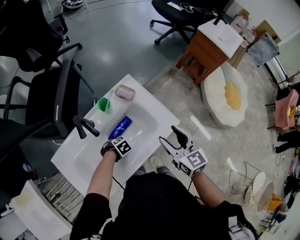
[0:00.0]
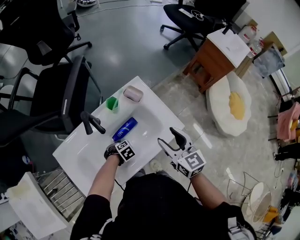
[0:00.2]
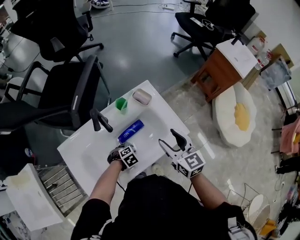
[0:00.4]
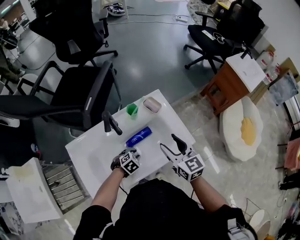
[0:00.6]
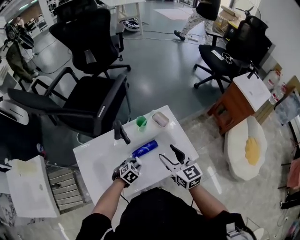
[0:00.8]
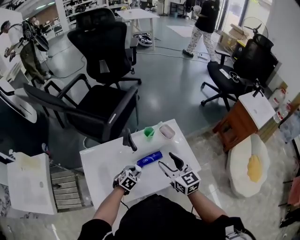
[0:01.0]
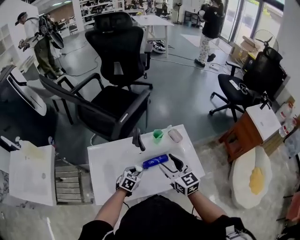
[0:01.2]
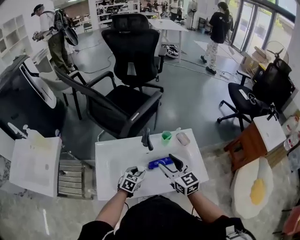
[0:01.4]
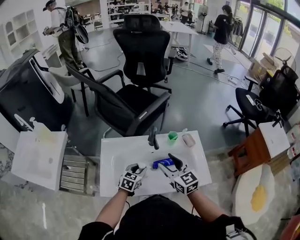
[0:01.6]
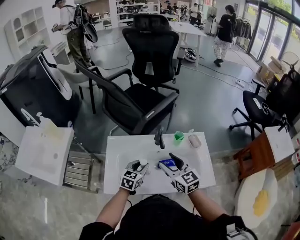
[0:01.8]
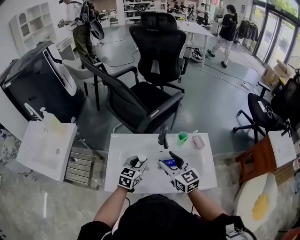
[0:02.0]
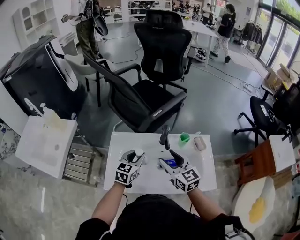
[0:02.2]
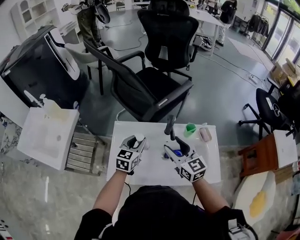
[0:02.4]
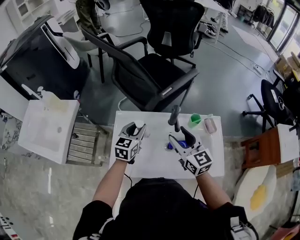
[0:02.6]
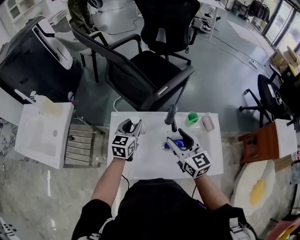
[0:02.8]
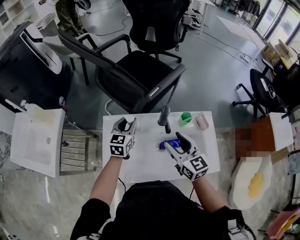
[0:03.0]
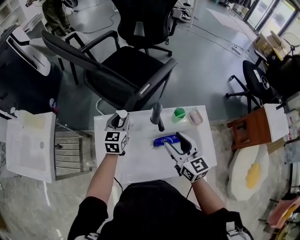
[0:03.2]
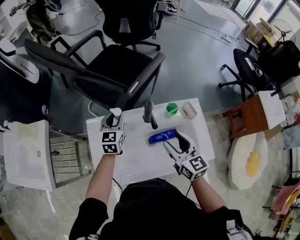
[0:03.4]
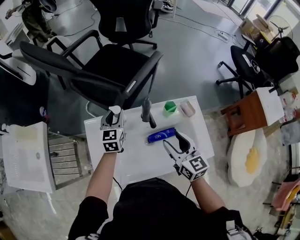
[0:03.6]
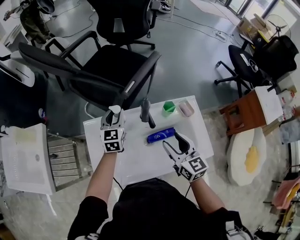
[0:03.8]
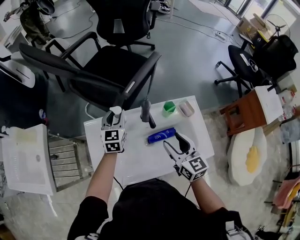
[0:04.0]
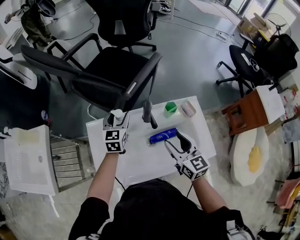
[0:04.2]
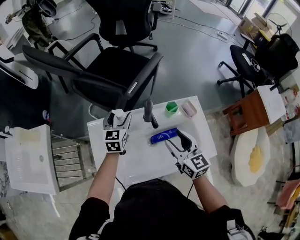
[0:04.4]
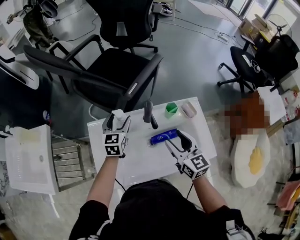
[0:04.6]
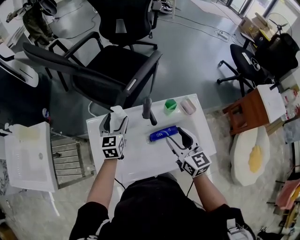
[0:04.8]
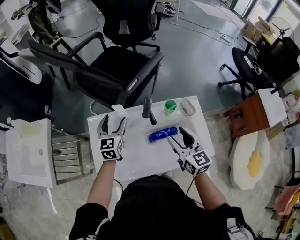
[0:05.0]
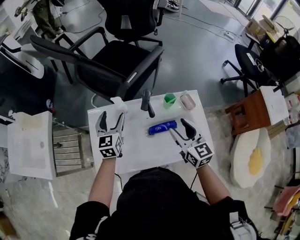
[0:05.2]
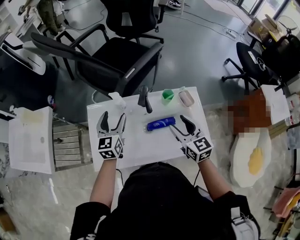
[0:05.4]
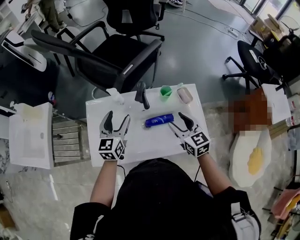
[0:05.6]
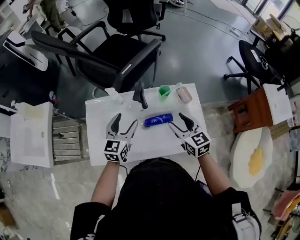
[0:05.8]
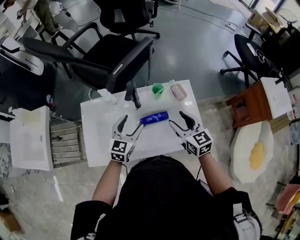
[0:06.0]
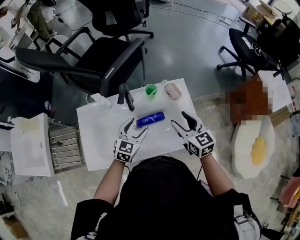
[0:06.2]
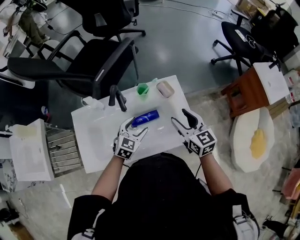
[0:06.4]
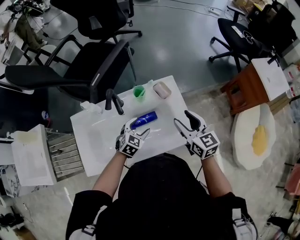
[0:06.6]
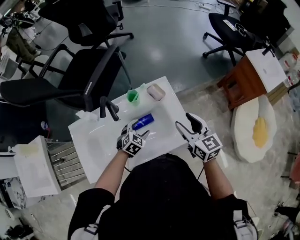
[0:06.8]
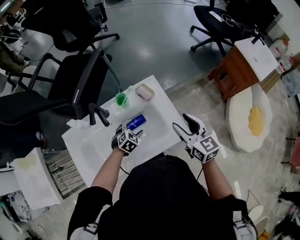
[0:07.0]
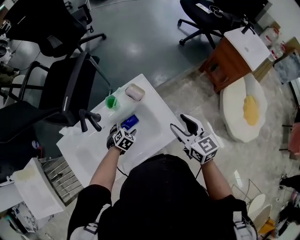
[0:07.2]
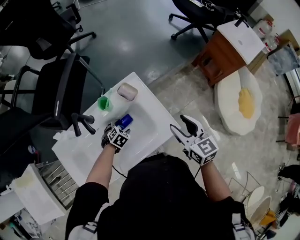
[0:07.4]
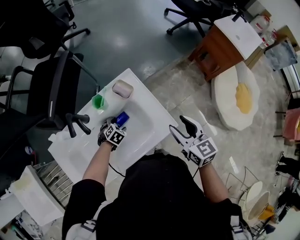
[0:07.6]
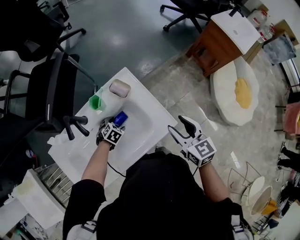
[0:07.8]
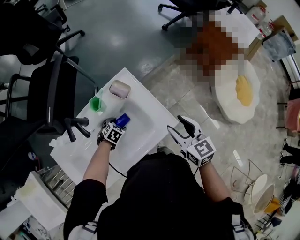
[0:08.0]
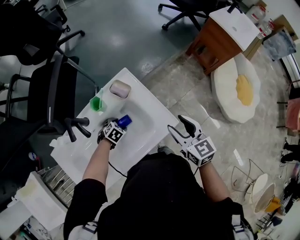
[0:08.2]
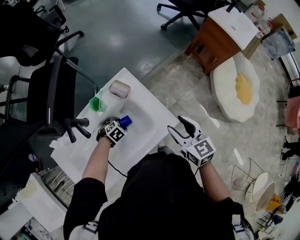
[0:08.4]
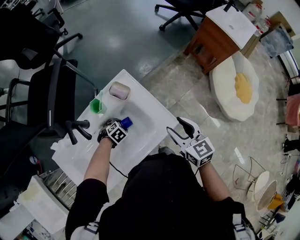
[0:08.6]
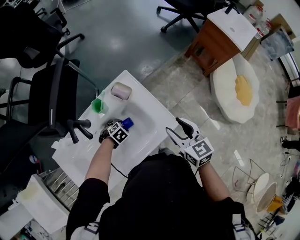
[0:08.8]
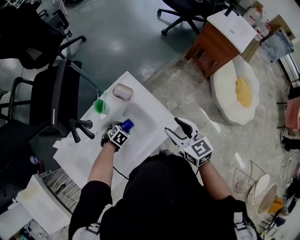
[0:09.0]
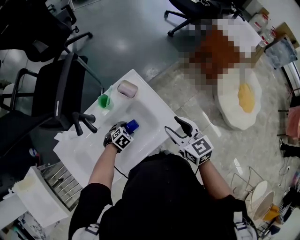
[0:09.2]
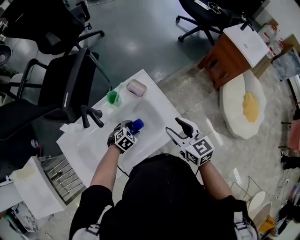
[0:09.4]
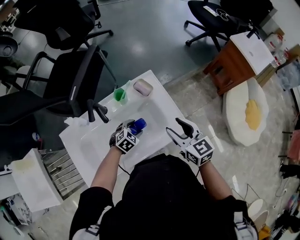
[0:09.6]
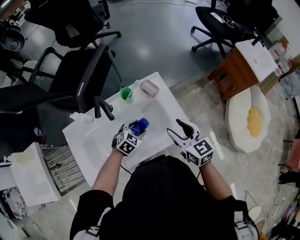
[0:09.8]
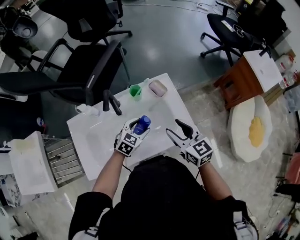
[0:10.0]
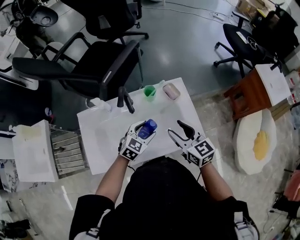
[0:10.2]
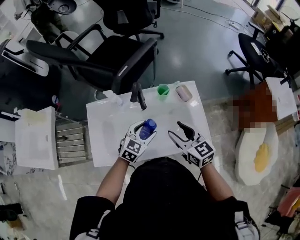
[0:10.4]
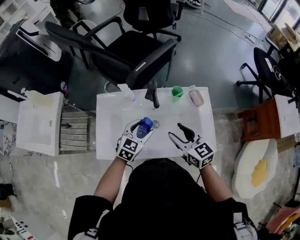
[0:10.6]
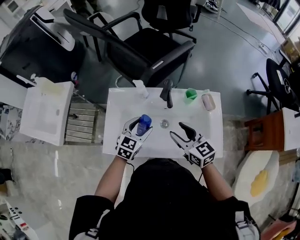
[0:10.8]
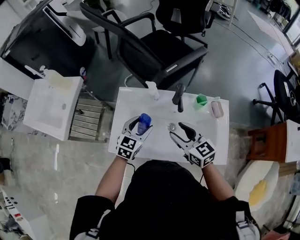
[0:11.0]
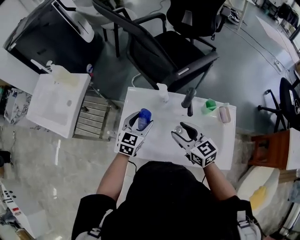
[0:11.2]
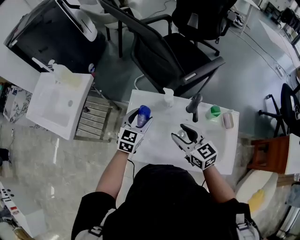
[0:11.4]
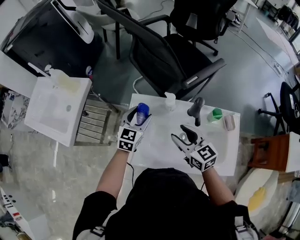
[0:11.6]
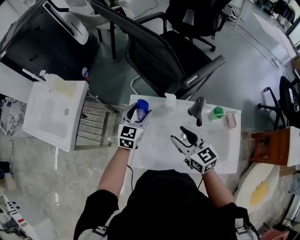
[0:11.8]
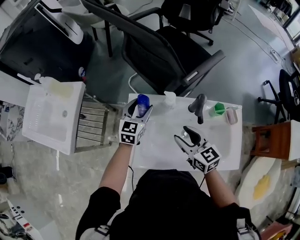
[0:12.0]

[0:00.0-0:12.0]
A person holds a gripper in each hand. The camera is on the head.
0:00.0 to 0:01.6: The right gripper ends up some 25 cm from where it was, and swivels about 40 degrees, while the left gripper moves upward, roughly 20 cm, and tips its fingers upward by approximately 40 degrees.
0:01.6 to 0:03.0: The left gripper travels forward, to the left and upward by roughly 20 cm, and changes its angle by approximately 20 degrees.
0:03.0 to 0:04.4: The left gripper moves approximately 5 cm, and opens up. Meanwhile the right gripper travels to the right by some 5 cm.
0:04.4 to 0:06.0: The right gripper goes about 10 cm to the right. The left gripper goes about 20 cm backward and to the right.
0:06.0 to 0:07.6: The left gripper travels downward by roughly 25 cm, and points its fingers some 50 degrees further downward. Meanwhile the right gripper ends up approximately 20 cm from where it was, and swivels some 30 degrees.
0:07.6 to 0:09.0: The grippers move only a little.
0:09.0 to 0:10.4: The left gripper heads upward, covering roughly 20 cm, and tips its fingers upward by some 40 degrees, while the right gripper shifts by about 20 cm, and rotates approximately 30 degrees.
0:10.4 to 0:12.0: The right gripper moves approximately 20 cm, while the left gripper changes place by approximately 30 cm, and changes its angle by roughly 40 degrees.

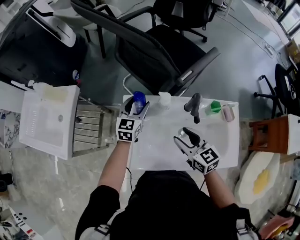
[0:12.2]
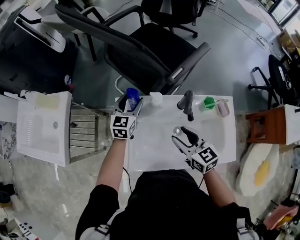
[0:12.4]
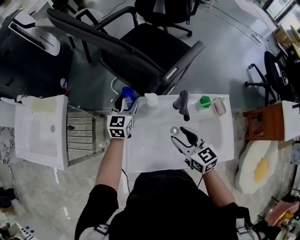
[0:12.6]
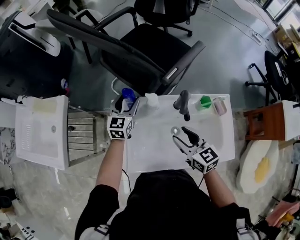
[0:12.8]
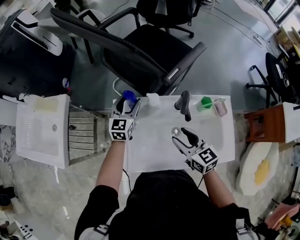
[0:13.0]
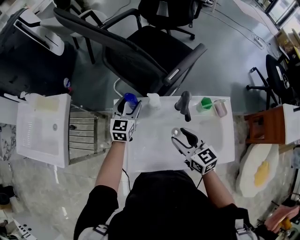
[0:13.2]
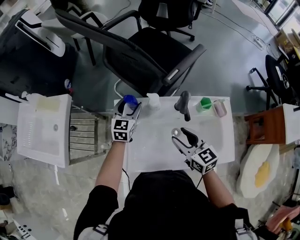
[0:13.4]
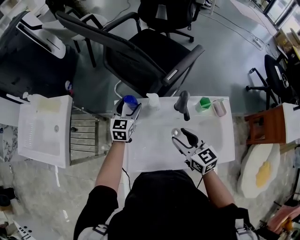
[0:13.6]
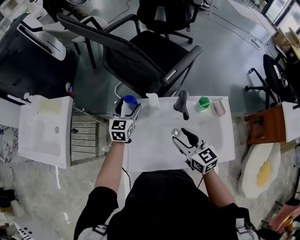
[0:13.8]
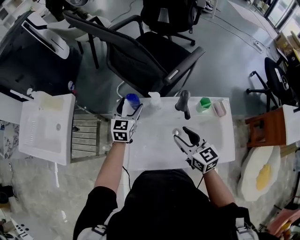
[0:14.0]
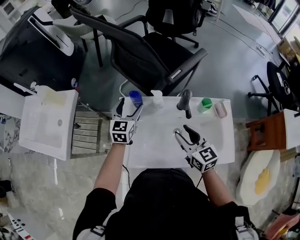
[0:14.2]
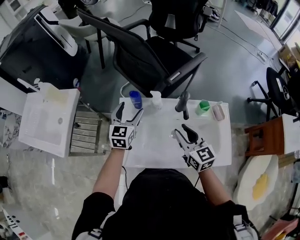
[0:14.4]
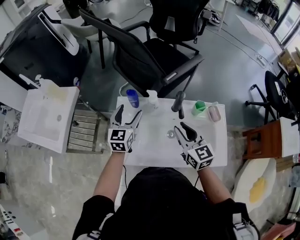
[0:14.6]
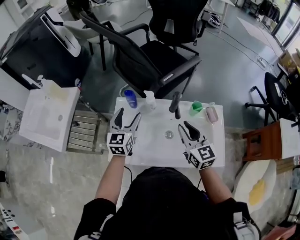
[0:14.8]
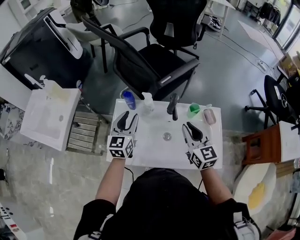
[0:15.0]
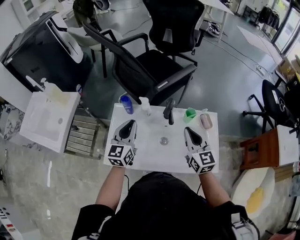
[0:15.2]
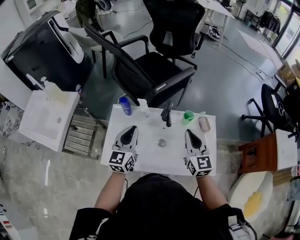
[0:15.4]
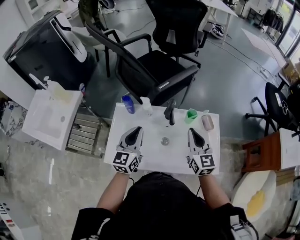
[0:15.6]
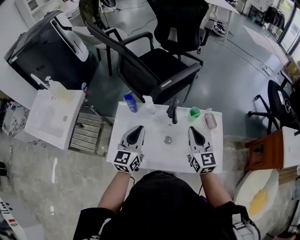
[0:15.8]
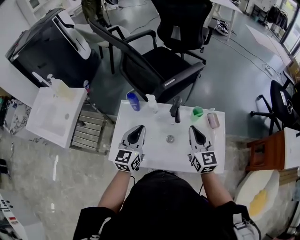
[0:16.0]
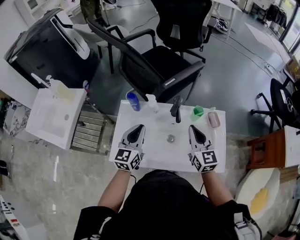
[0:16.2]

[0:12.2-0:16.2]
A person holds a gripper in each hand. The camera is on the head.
0:12.2 to 0:13.6: The grippers stay close to where they were, moving slightly.
0:13.6 to 0:14.8: The right gripper moves upward and to the right, approximately 10 cm; the left gripper heads backward and upward, covering roughly 15 cm.
0:14.8 to 0:16.2: The left gripper heads backward, covering roughly 5 cm, and closes its fingers.

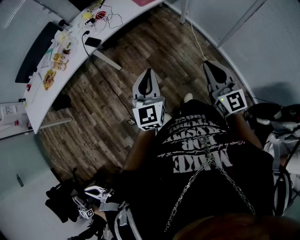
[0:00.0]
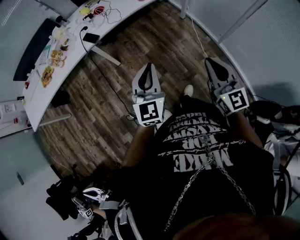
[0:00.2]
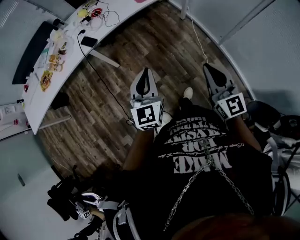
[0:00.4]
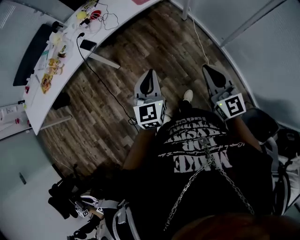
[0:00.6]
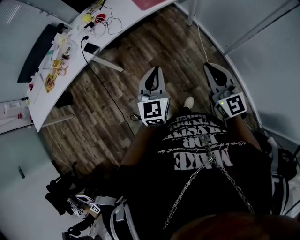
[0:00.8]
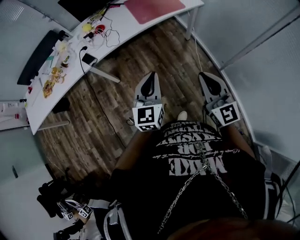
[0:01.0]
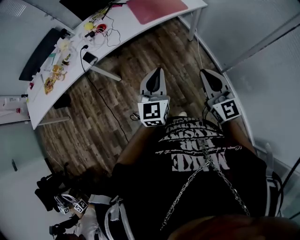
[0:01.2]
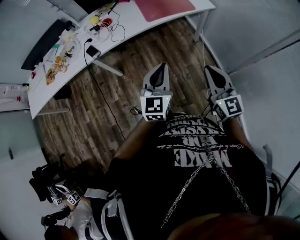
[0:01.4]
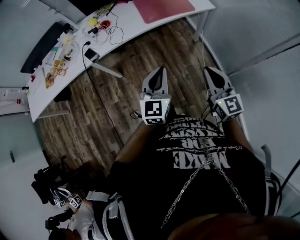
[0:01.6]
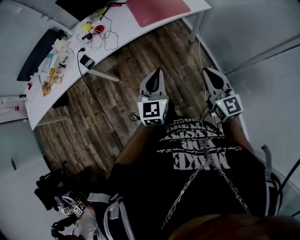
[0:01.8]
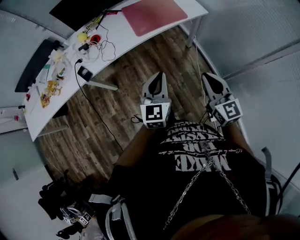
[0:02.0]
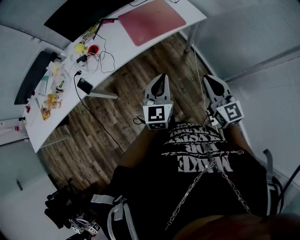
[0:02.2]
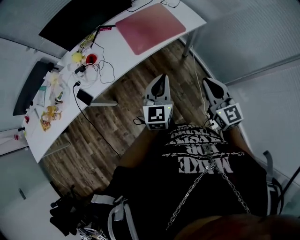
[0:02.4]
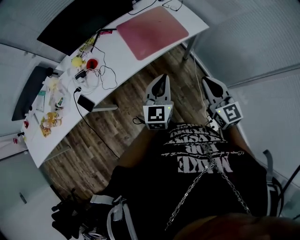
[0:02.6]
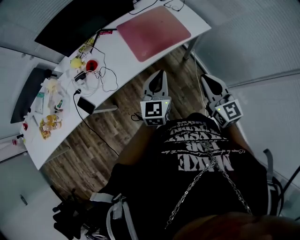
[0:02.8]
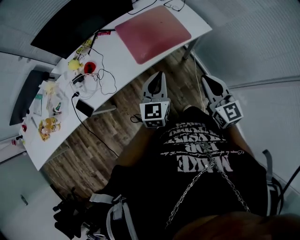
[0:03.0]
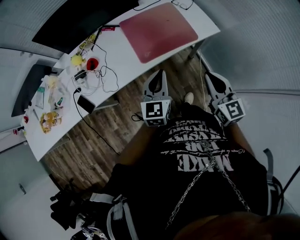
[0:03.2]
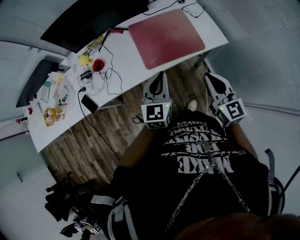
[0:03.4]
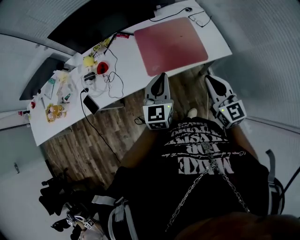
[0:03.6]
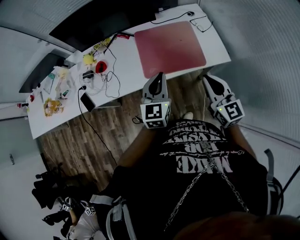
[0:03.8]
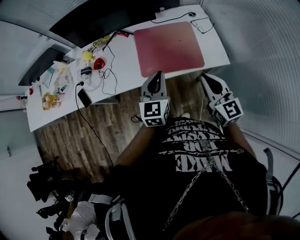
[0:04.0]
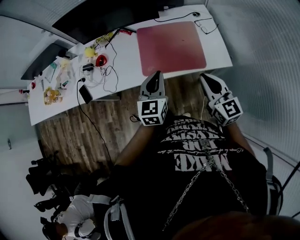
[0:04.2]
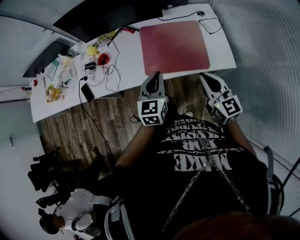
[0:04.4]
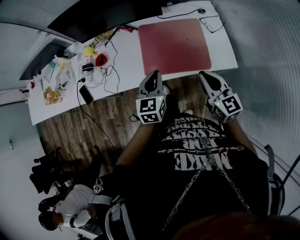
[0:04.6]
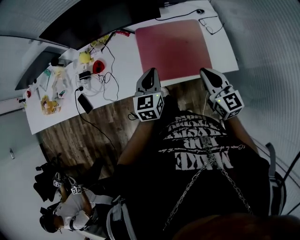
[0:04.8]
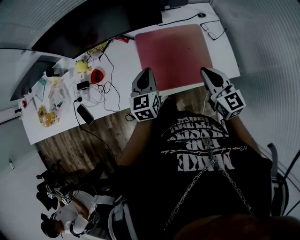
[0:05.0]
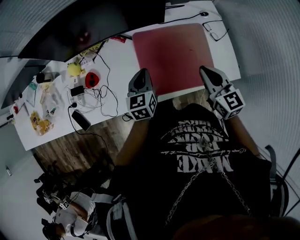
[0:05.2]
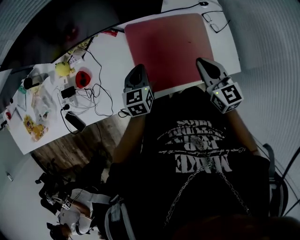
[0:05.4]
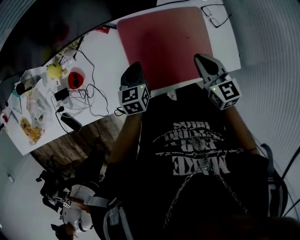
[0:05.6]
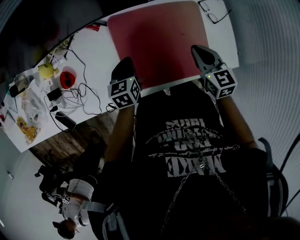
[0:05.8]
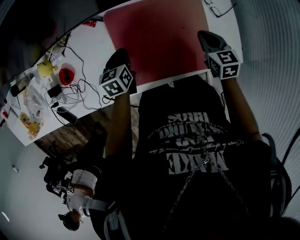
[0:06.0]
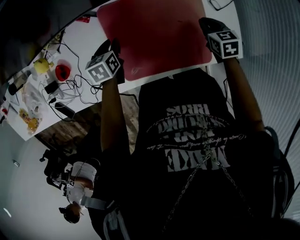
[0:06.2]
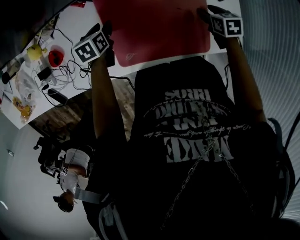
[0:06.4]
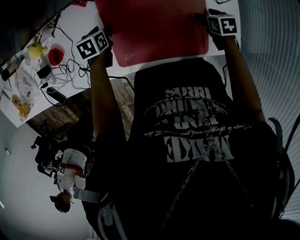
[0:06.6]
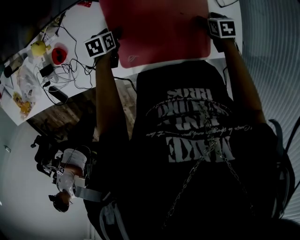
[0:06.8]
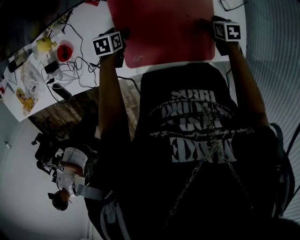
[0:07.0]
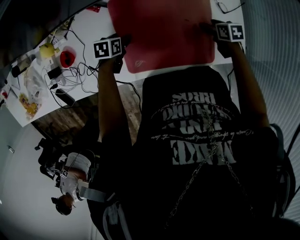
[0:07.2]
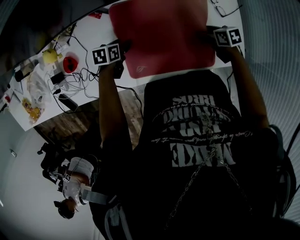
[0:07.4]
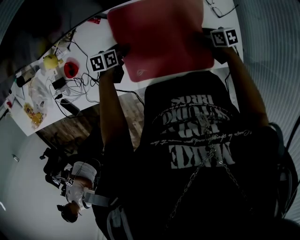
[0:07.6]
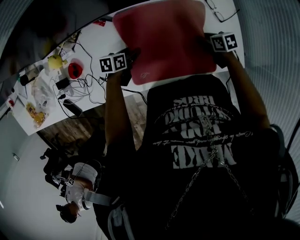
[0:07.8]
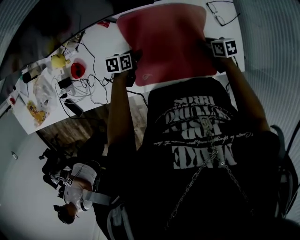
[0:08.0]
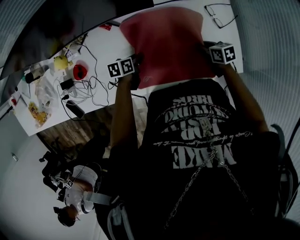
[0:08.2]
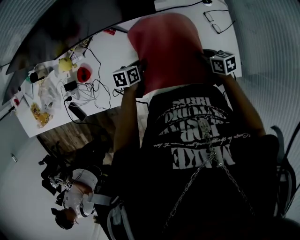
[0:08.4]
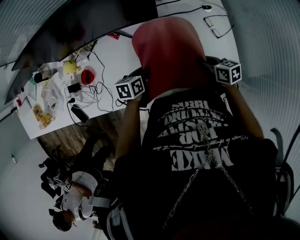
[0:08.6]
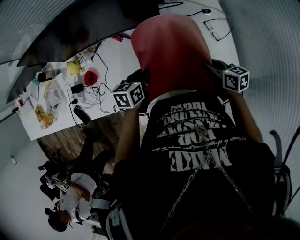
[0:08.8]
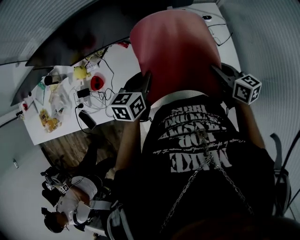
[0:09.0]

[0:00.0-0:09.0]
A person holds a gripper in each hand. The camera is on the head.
0:00.0 to 0:01.6: Both grippers travel together forward and to the right, approximately 35 cm.
0:01.6 to 0:03.0: Both grippers move forward, approximately 30 cm.
0:03.0 to 0:04.4: The left gripper changes place by approximately 15 cm, and rotates approximately 30 degrees, while the right gripper changes place by about 20 cm, and rotates about 30 degrees.
0:04.4 to 0:06.0: Both grippers travel together forward and downward, approximately 40 cm. The right gripper tips its fingers downward by some 40 degrees, while the left gripper turns by some 40 degrees.
0:06.0 to 0:07.6: The right gripper moves downward, some 10 cm, swivels about 40 degrees, and opens its fingers. Meanwhile the left gripper is displaced downward by about 5 cm, turns by roughly 20 degrees, and opens up.
0:07.6 to 0:09.0: Both grippers travel together upward, roughly 30 cm. The right gripper swivels some 30 degrees, and closes its fingers; the left gripper rotates about 30 degrees, and closes.
